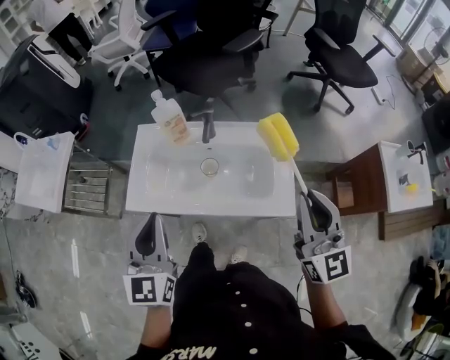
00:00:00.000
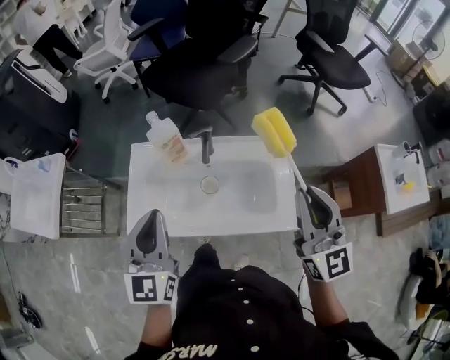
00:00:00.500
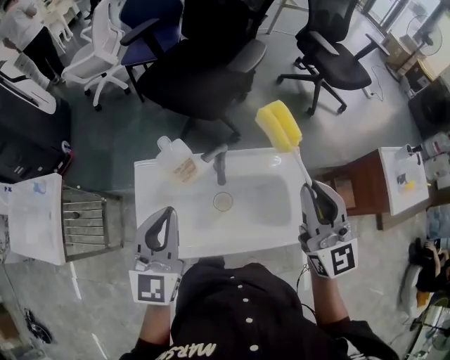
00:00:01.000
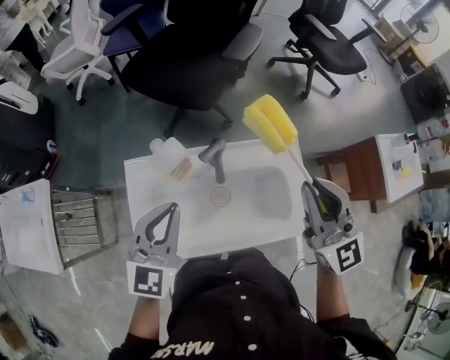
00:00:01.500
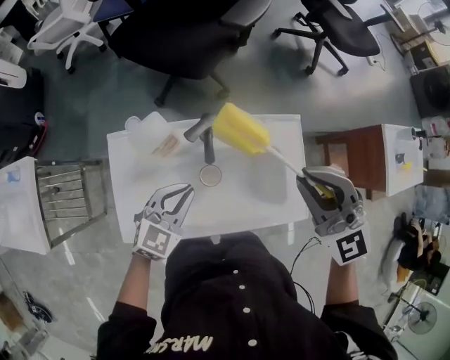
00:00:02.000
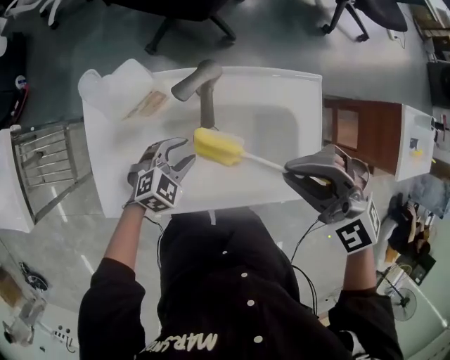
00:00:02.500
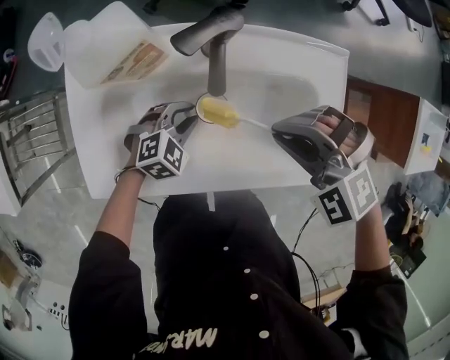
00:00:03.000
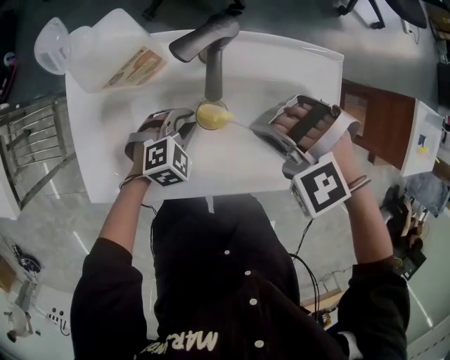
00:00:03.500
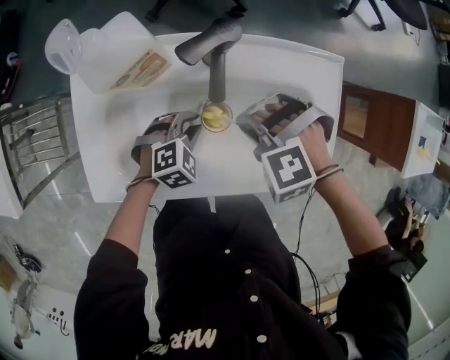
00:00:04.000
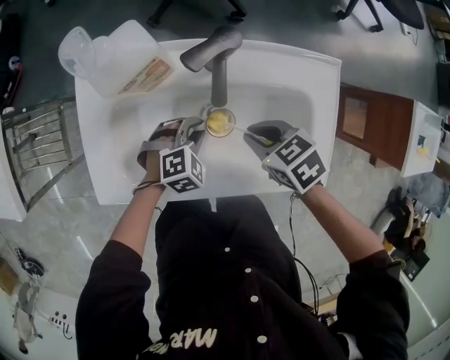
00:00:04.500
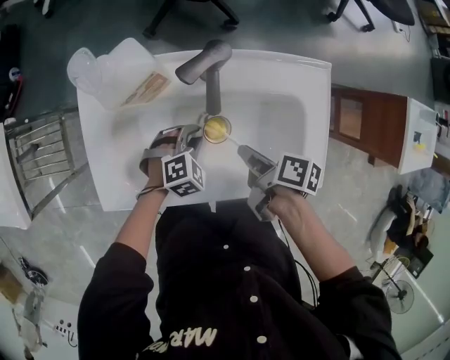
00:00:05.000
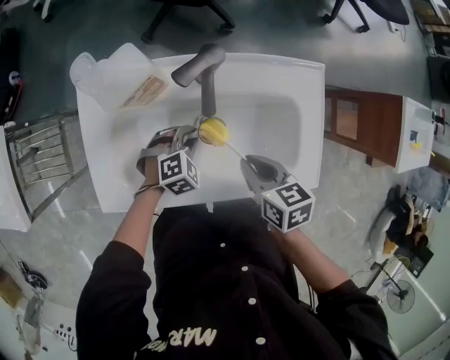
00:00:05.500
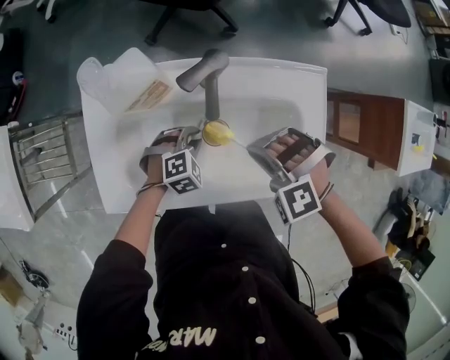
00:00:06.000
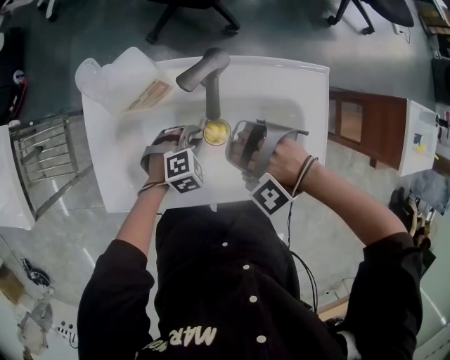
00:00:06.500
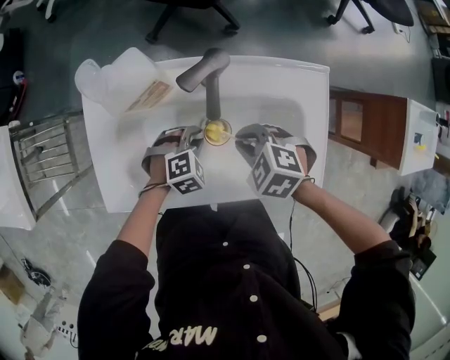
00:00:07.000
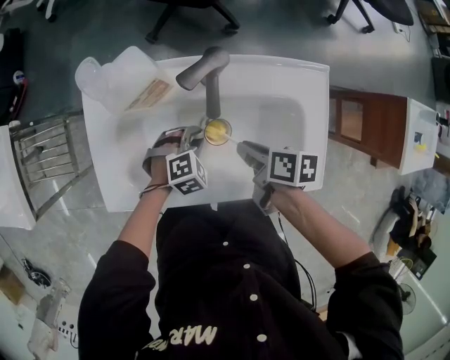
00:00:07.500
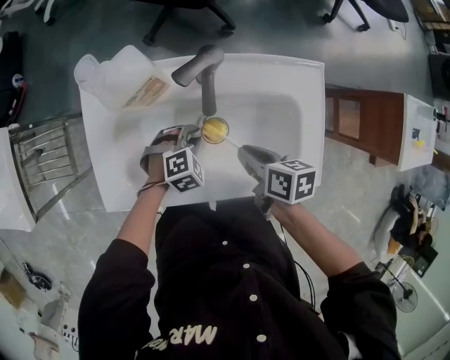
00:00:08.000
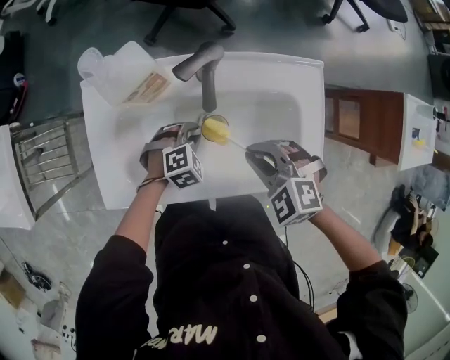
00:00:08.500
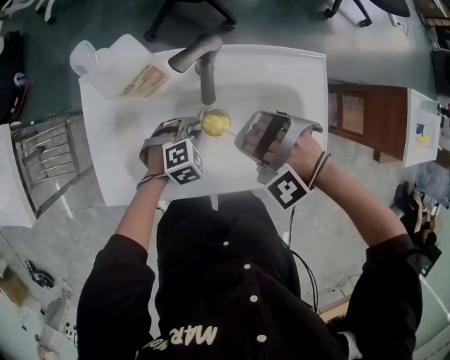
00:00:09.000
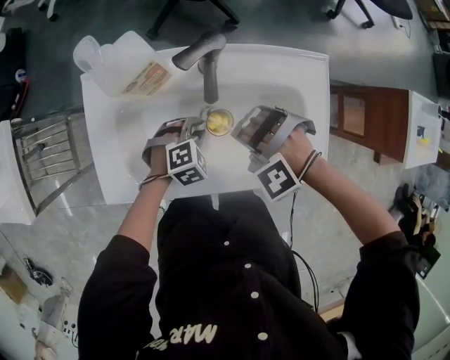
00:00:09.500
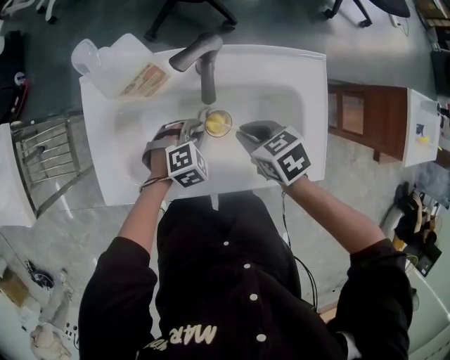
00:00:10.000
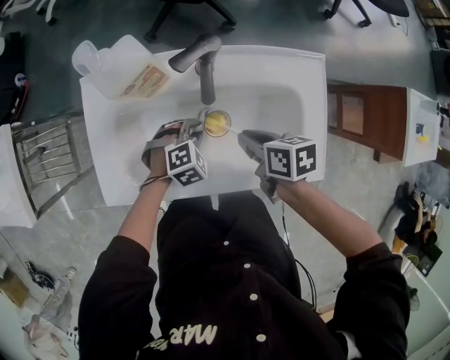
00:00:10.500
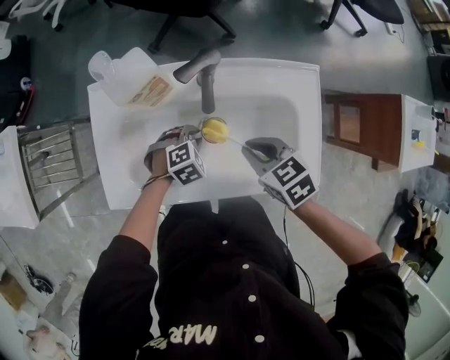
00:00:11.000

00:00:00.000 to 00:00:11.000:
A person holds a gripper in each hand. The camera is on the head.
00:00:00.000 to 00:00:02.000: The left gripper is displaced forward and downward by some 30 cm, and changes its angle by some 50 degrees. The right gripper is displaced forward and to the left by some 20 cm, and swivels roughly 40 degrees.
00:00:02.000 to 00:00:03.500: The grippers both shift downward by roughly 25 cm. The left gripper swivels some 30 degrees, and opens, then closes again. Meanwhile the right gripper tips its fingers downward by roughly 60 degrees.
00:00:03.500 to 00:00:05.500: The right gripper ends up about 5 cm from where it was, and rotates around the line of its fingers by some 110 degrees, clockwise from behind.
00:00:05.500 to 00:00:07.500: The right gripper ends up some 5 cm from where it was, and rotates roughly 30 degrees.
00:00:07.500 to 00:00:09.000: The right gripper changes place by some 5 cm, and rolls counterclockwise, seen from behind, by roughly 160 degrees.
00:00:09.000 to 00:00:11.000: The right gripper rolls clockwise, seen from behind, by approximately 110 degrees.

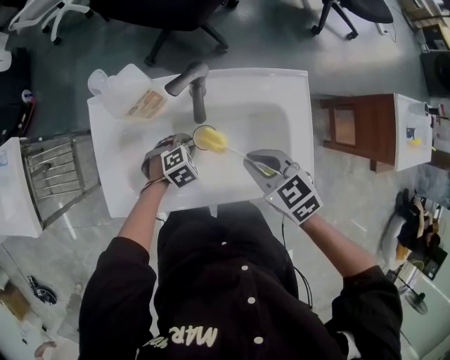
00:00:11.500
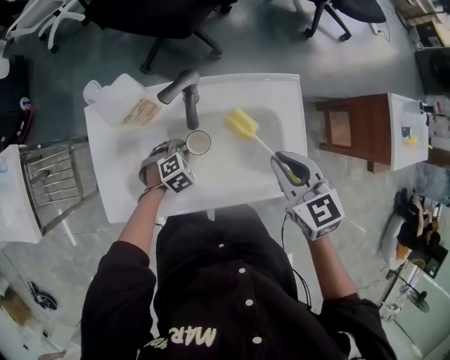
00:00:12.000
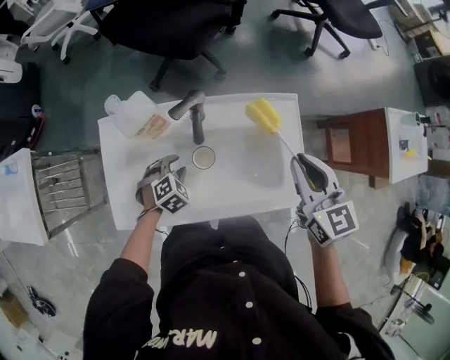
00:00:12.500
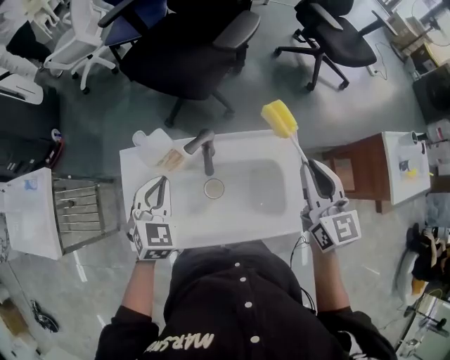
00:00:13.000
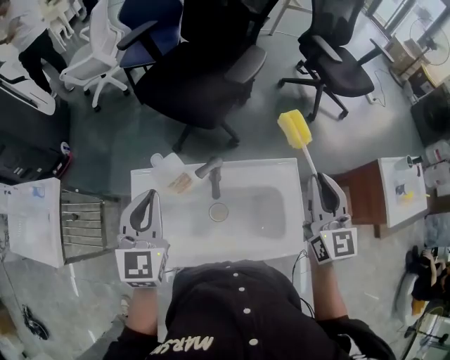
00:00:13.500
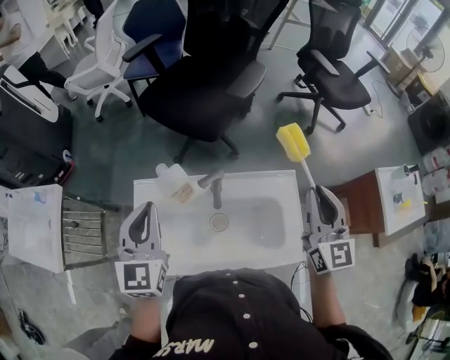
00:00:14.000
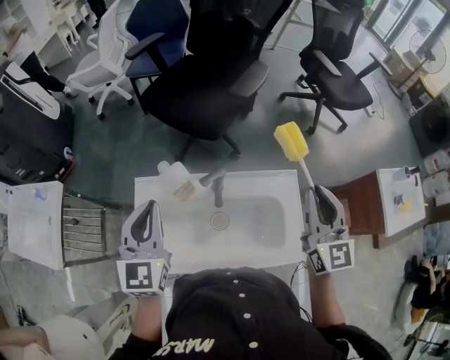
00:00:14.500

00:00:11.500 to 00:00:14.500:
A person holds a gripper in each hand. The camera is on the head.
00:00:11.500 to 00:00:13.000: The left gripper goes about 30 cm upward, and angles its fingers upward, by approximately 30 degrees. The right gripper is displaced upward, to the right and forward by about 25 cm, and points its fingers approximately 40 degrees further upward.
00:00:13.000 to 00:00:14.500: The right gripper heads upward, covering about 5 cm; the left gripper travels upward by about 15 cm, and rotates about 30 degrees.

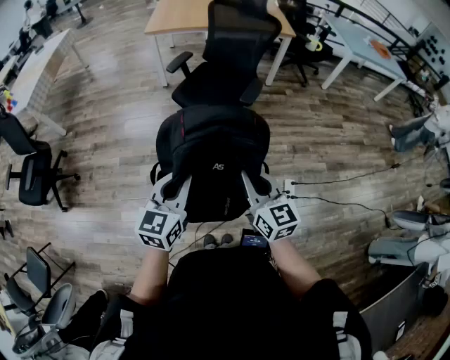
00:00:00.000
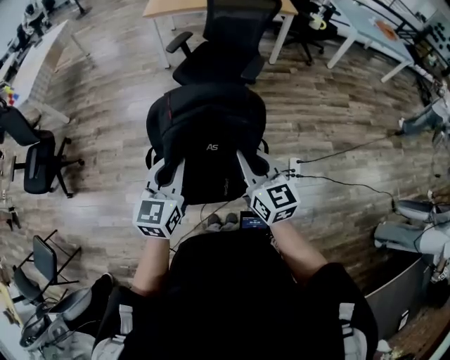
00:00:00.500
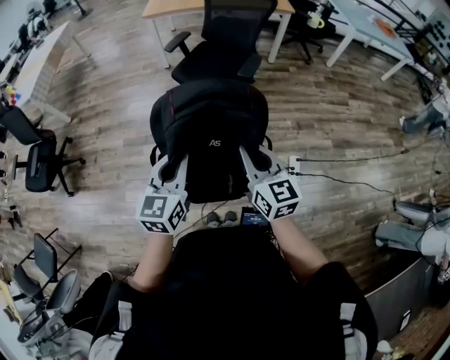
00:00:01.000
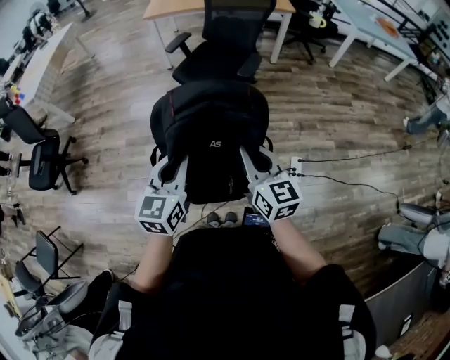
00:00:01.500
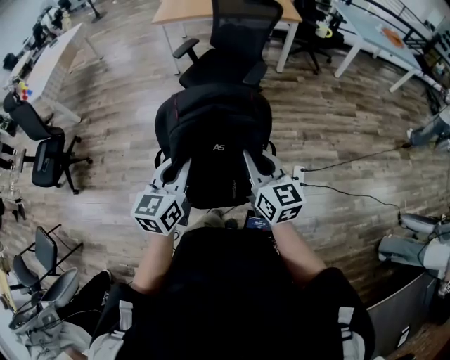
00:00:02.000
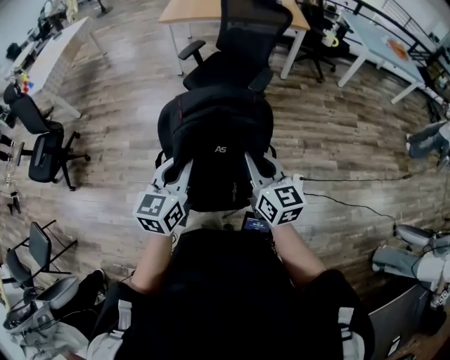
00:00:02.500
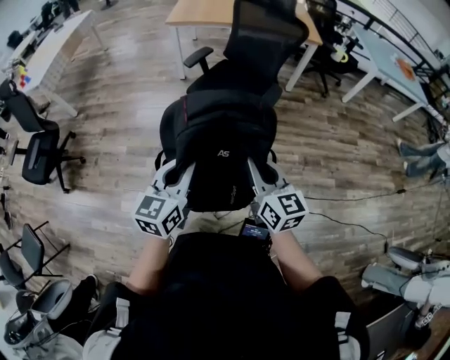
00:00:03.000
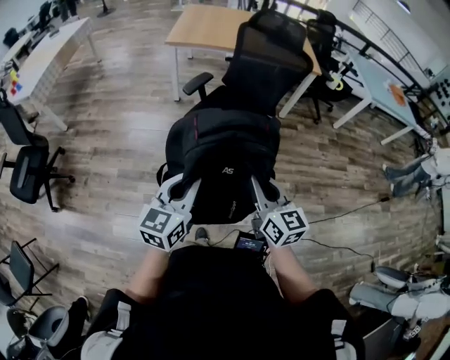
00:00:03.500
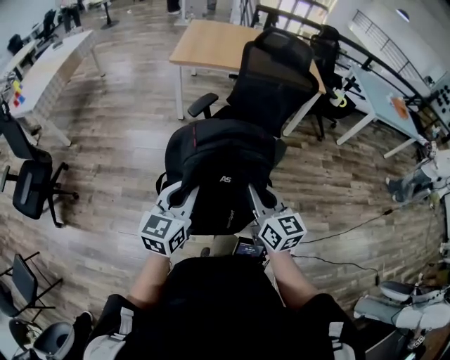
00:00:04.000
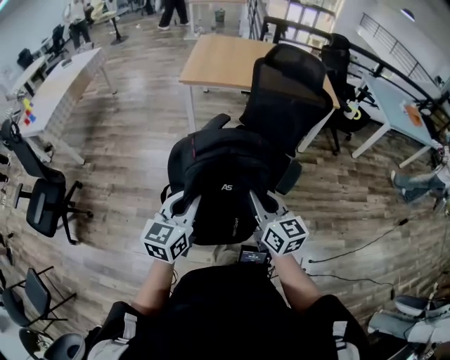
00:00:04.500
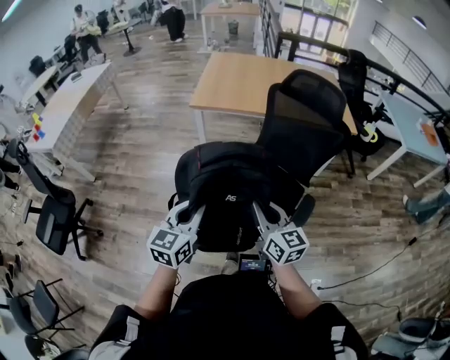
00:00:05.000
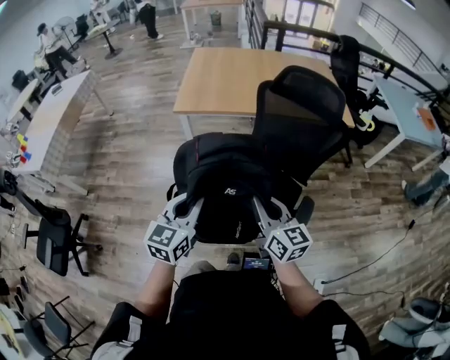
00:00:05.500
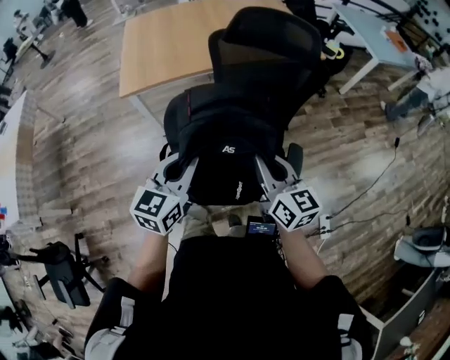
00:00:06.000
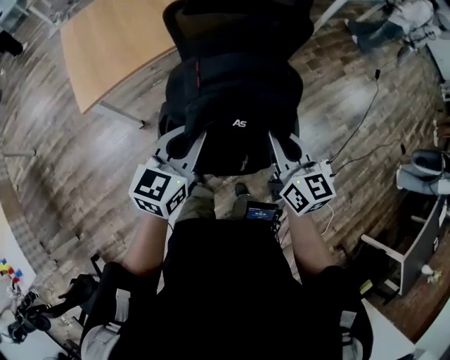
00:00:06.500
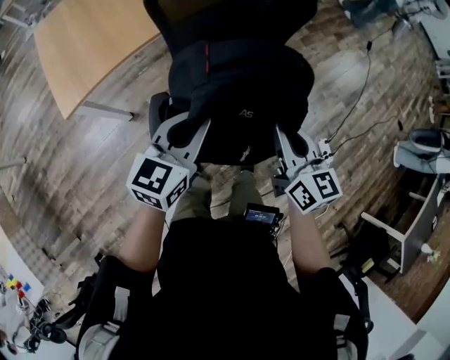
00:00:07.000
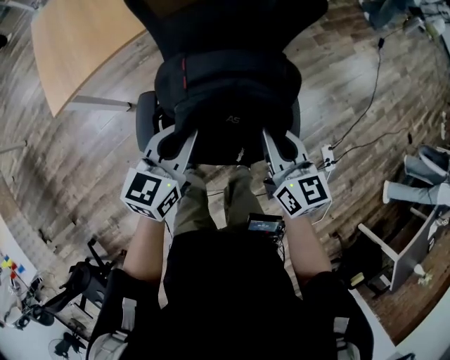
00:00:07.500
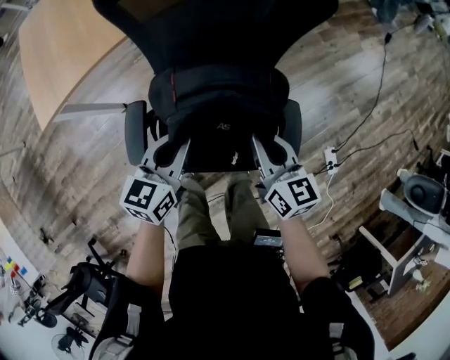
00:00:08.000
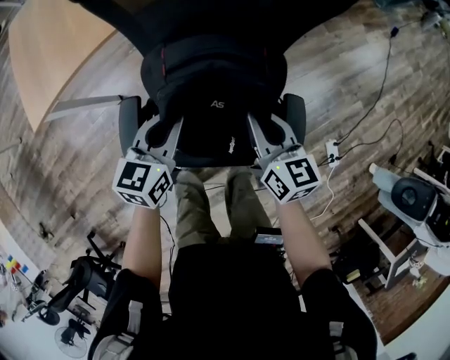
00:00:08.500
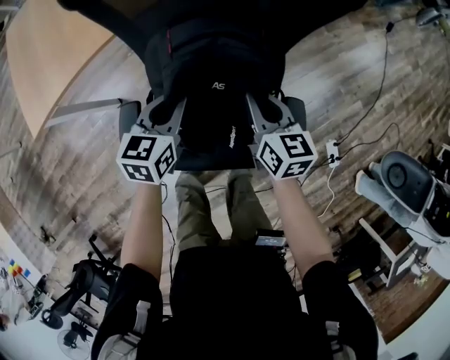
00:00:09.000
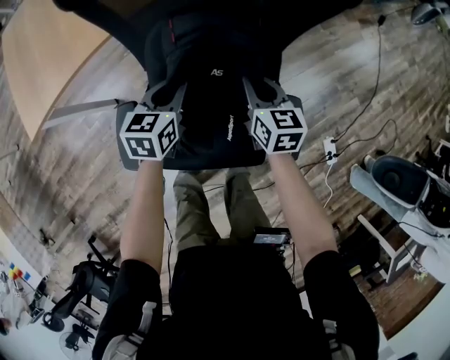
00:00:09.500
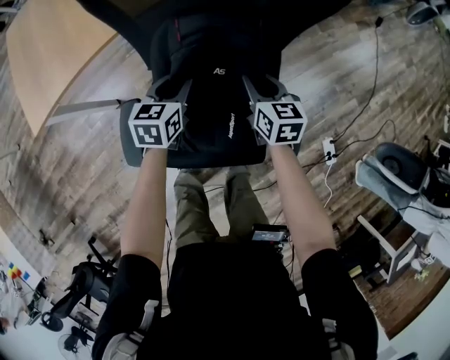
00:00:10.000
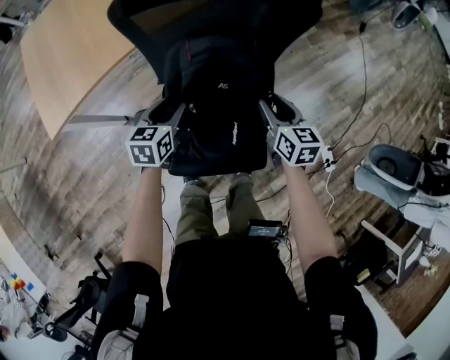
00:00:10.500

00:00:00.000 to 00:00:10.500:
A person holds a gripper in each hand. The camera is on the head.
00:00:00.000 to 00:00:02.000: The right gripper goes approximately 5 cm to the right, while the left gripper moves to the right and backward, about 10 cm.
00:00:02.000 to 00:00:04.000: The two grippers go roughly 35 cm forward.
00:00:04.000 to 00:00:06.500: The pair of grippers is taken about 50 cm. The left gripper changes its angle by about 40 degrees; the right gripper swivels approximately 40 degrees.
00:00:06.500 to 00:00:08.500: Both grippers move downward and forward, some 25 cm.
00:00:08.500 to 00:00:10.500: The left gripper moves to the left, approximately 5 cm, and opens its fingers. Meanwhile the right gripper moves approximately 10 cm forward and comes back, and opens.

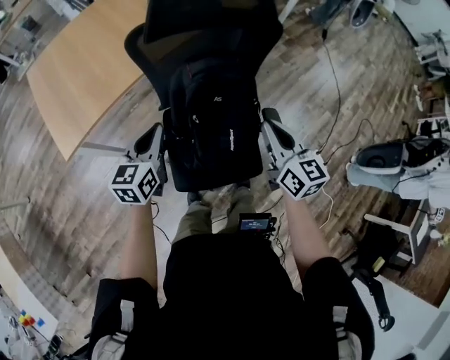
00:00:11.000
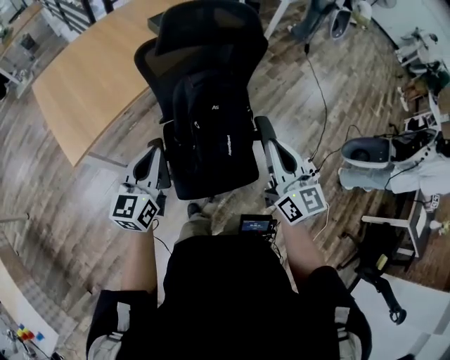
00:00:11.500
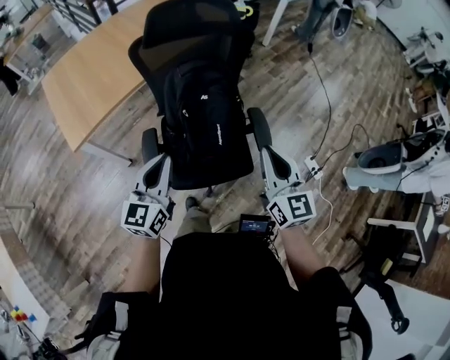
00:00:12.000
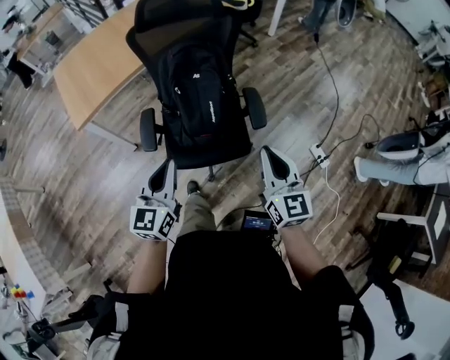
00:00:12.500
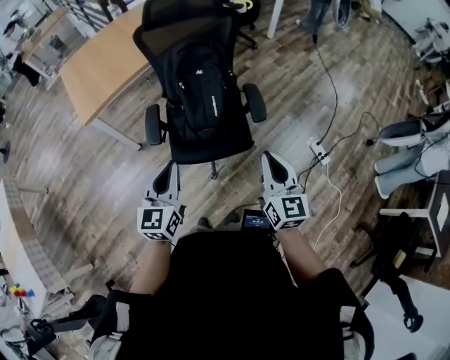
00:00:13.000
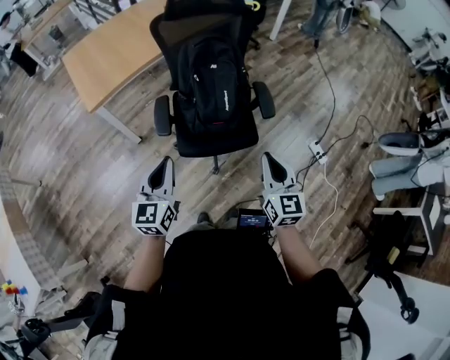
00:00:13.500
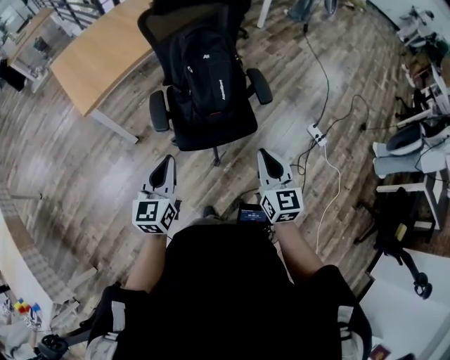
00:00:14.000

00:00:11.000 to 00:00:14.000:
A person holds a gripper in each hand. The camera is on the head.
00:00:11.000 to 00:00:12.500: Both grippers move backward and to the right, some 35 cm.
00:00:12.500 to 00:00:14.000: The left gripper travels to the left and backward by some 15 cm; the right gripper heads backward and to the left, covering approximately 15 cm.
